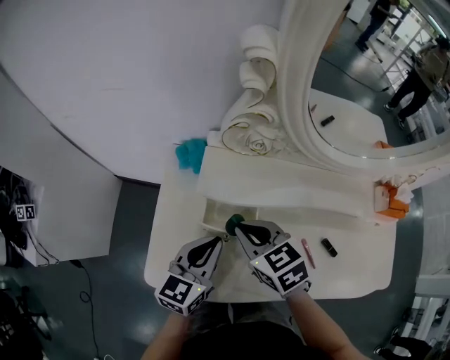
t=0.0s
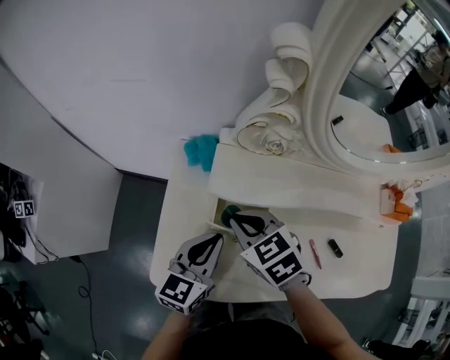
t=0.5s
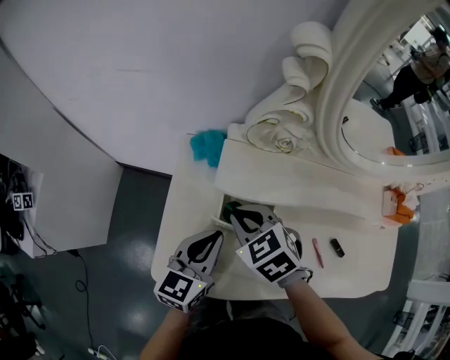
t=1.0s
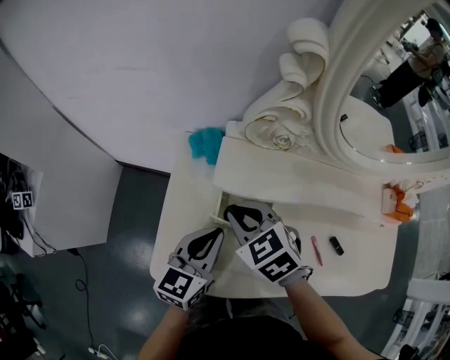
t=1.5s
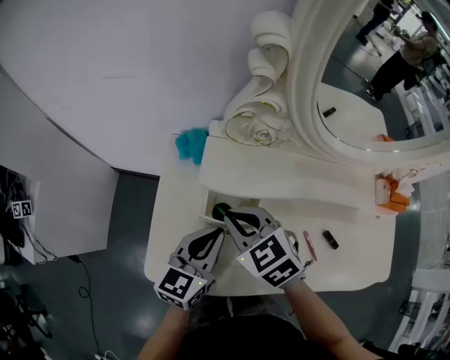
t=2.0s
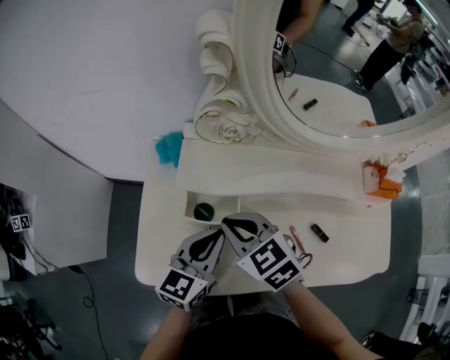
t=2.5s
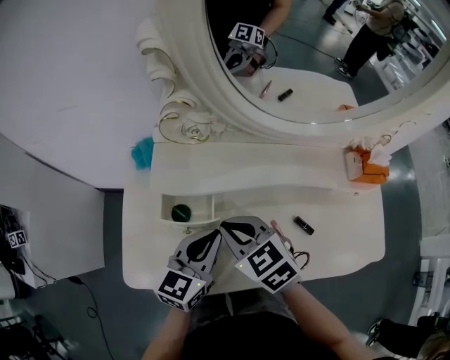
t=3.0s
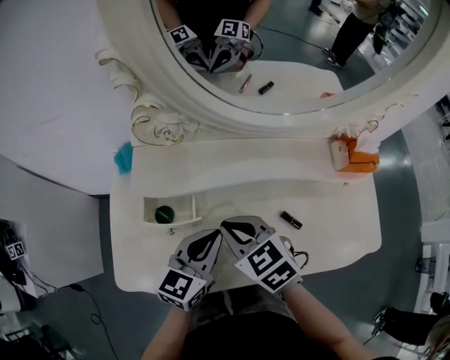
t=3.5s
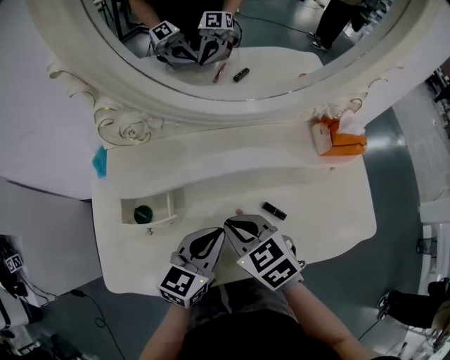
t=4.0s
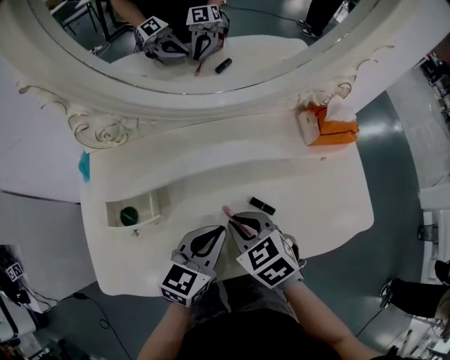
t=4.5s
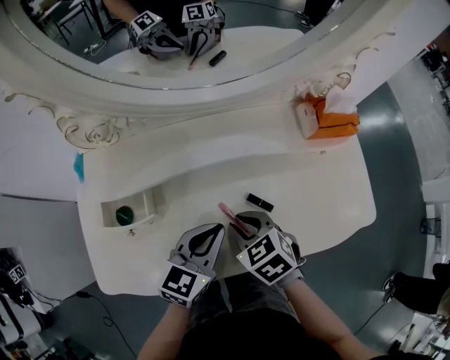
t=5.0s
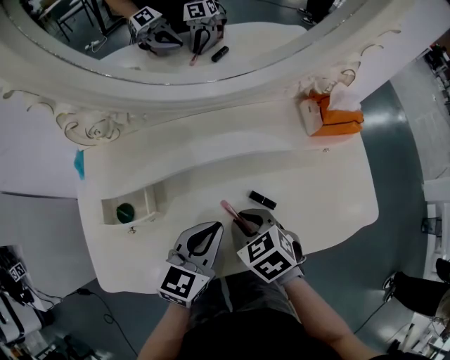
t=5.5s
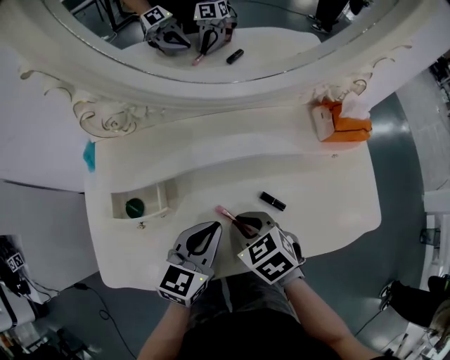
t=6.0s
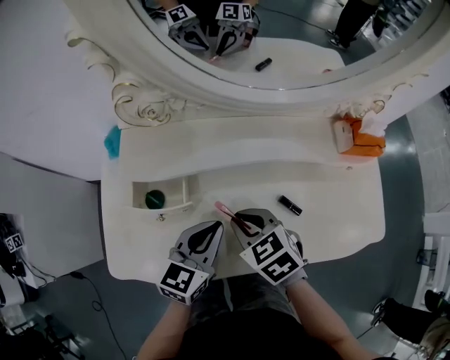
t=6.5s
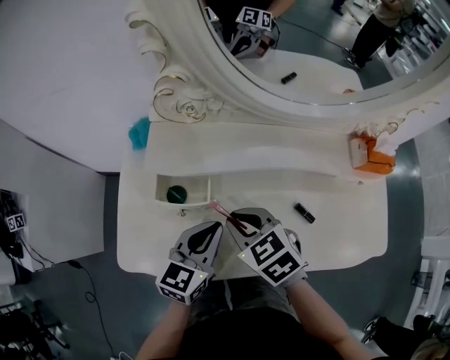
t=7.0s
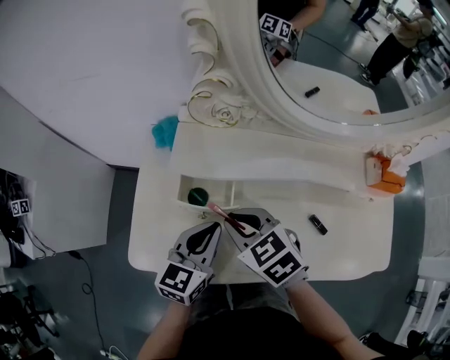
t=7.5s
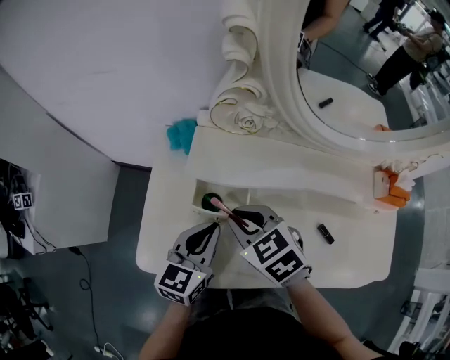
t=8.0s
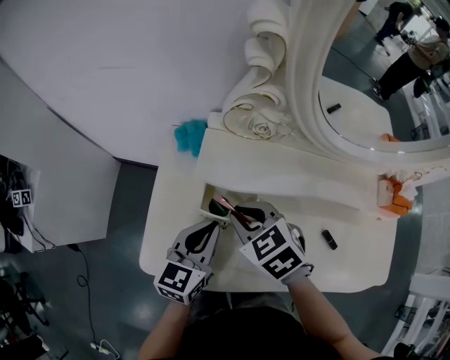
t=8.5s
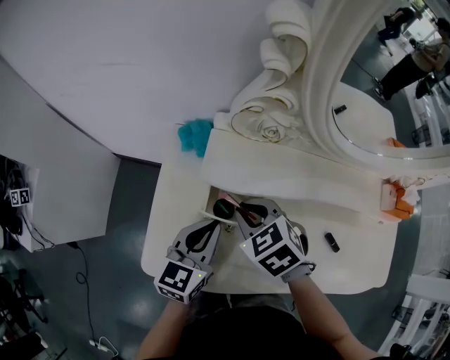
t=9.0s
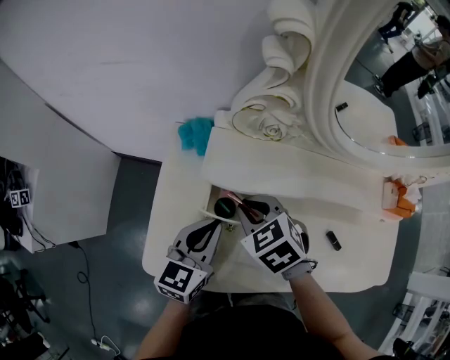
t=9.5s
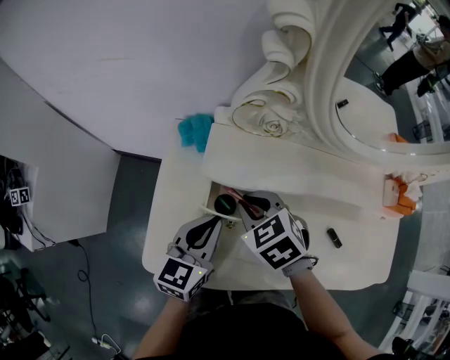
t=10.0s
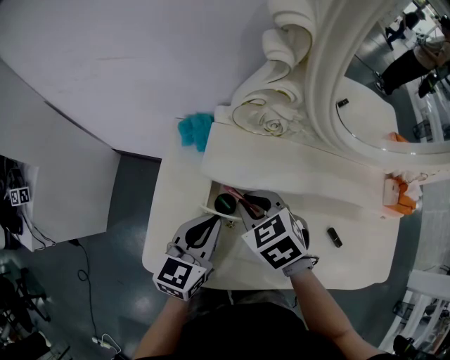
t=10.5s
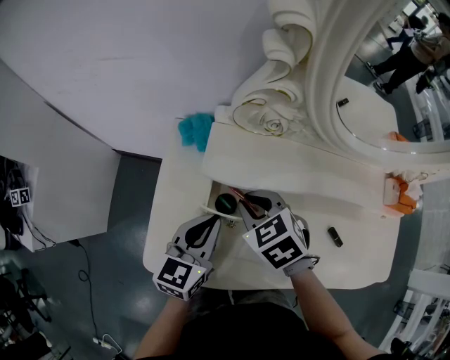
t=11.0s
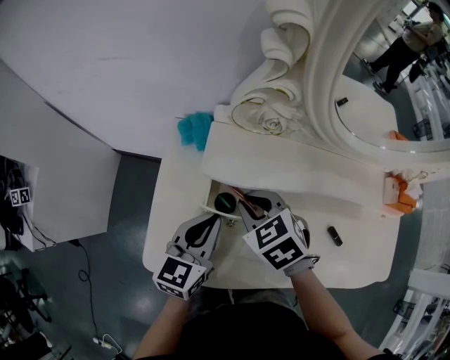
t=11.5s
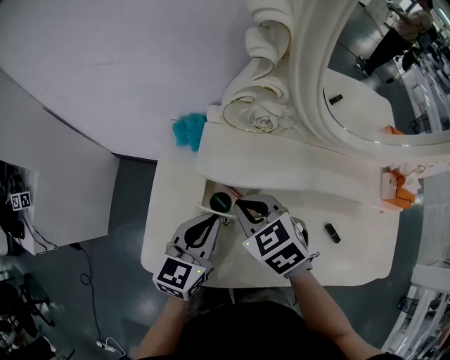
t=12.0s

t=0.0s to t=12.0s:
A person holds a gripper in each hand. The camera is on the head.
t=2.0s to t=4.0s: Both grippers move to the right, some 20 cm.
t=4.0s to t=6.0s: The right gripper heads downward, covering approximately 5 cm.
t=6.0s to t=8.0s: The grippers both shift to the left by about 20 cm. The right gripper turns by roughly 20 degrees. Meanwhile the left gripper rotates roughly 20 degrees.
t=8.0s to t=10.0s: The right gripper ends up some 5 cm from where it was.
t=10.0s to t=12.0s: There are only small adjustments of the grippers.

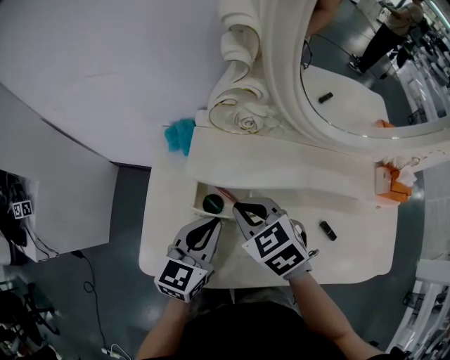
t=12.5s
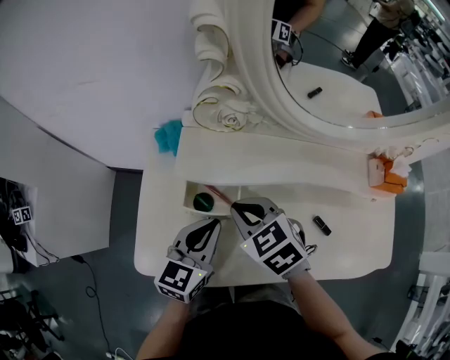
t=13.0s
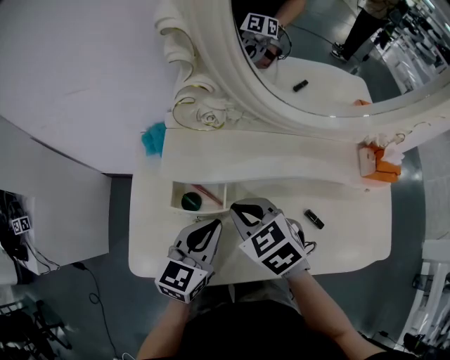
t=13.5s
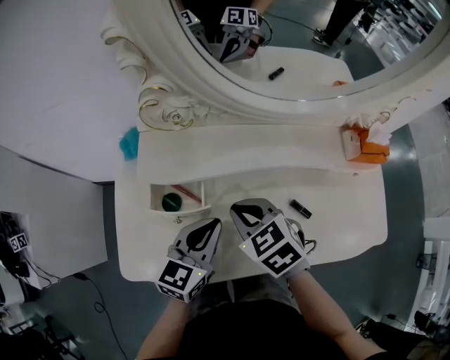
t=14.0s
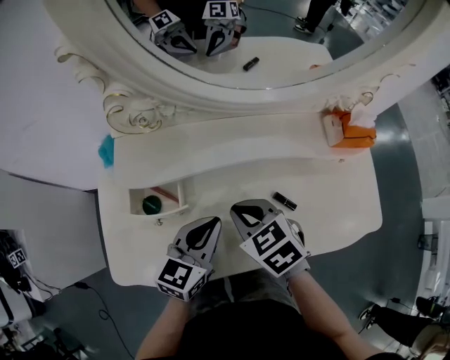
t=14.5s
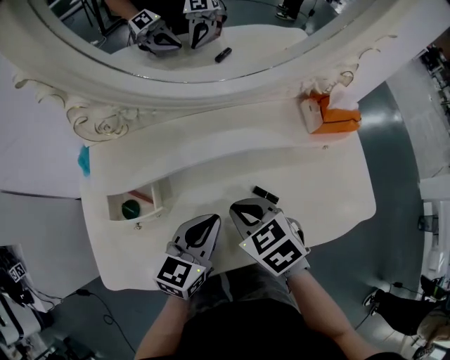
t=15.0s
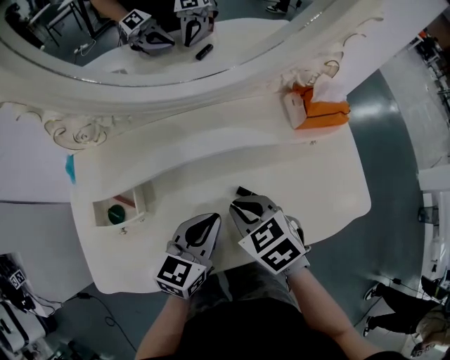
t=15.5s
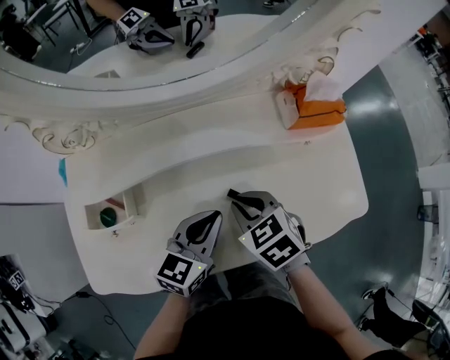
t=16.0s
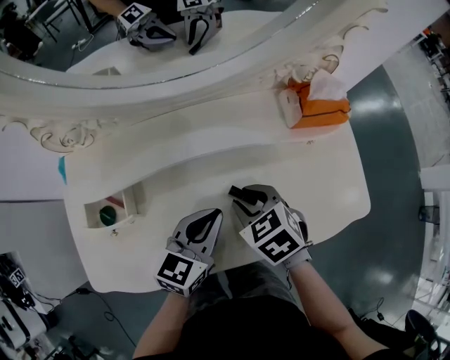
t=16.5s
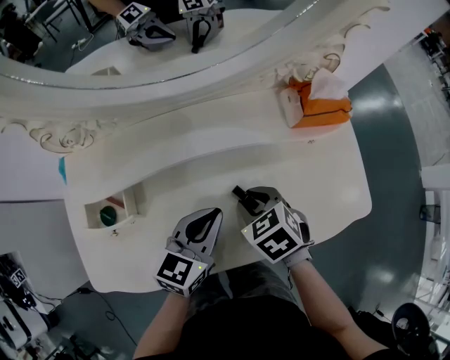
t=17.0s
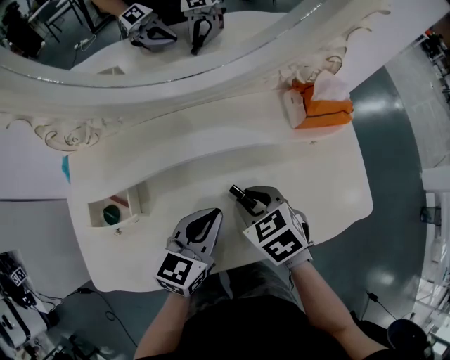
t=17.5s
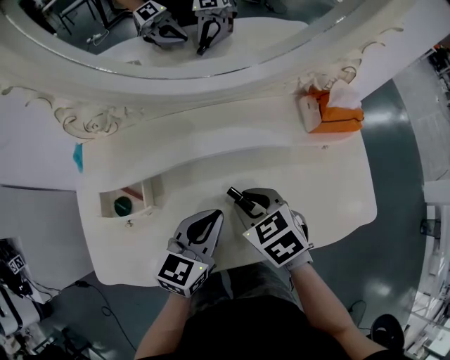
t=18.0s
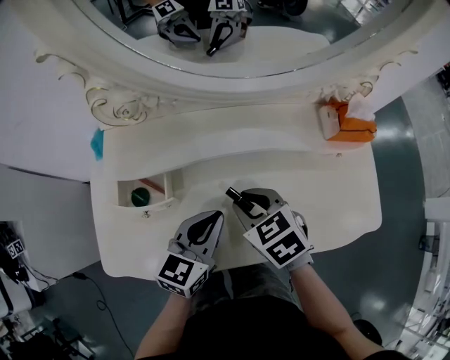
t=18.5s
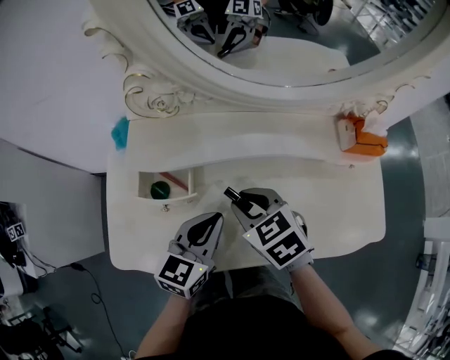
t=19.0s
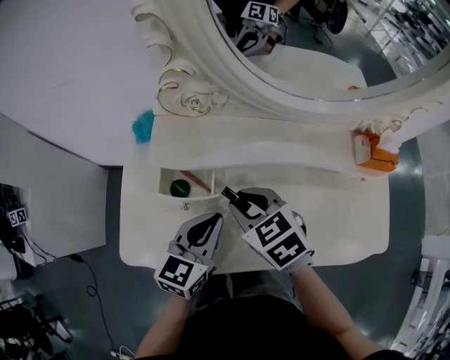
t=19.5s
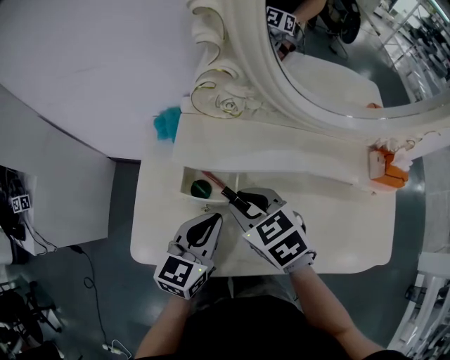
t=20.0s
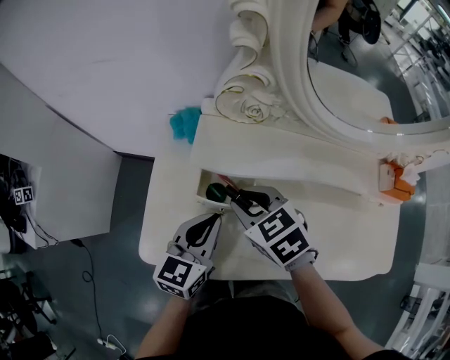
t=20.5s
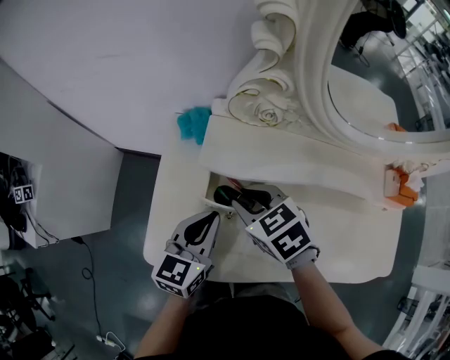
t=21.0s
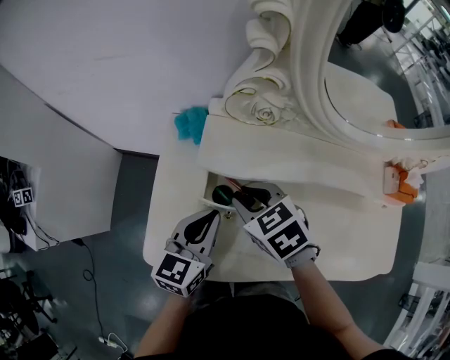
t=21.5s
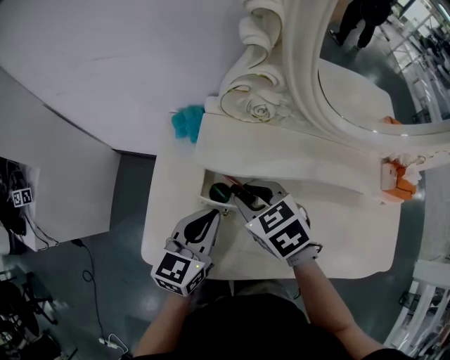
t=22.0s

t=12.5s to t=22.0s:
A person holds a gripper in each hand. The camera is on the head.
t=12.5s to t=14.5s: Both grippers travel together to the right, roughly 15 cm.
t=14.5s to t=16.5s: Both grippers move to the right, about 15 cm. The right gripper opens.
t=16.5s to t=18.0s: The grippers make only small movements.
t=18.0s to t=20.0s: The grippers both shift to the left by roughly 20 cm.
t=20.0s to t=22.0s: The left gripper is displaced to the left by about 5 cm. Meanwhile the right gripper shifts by some 5 cm.

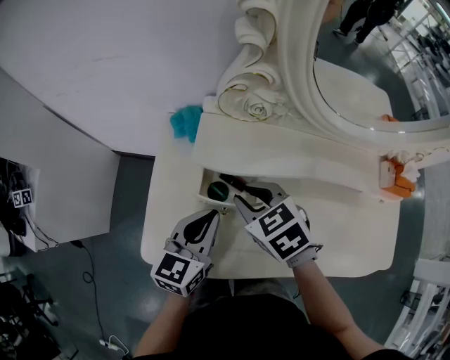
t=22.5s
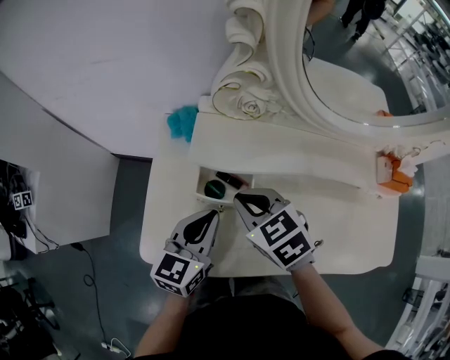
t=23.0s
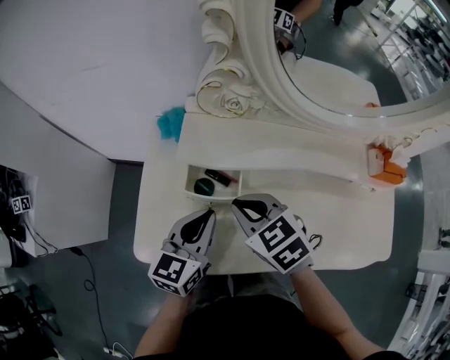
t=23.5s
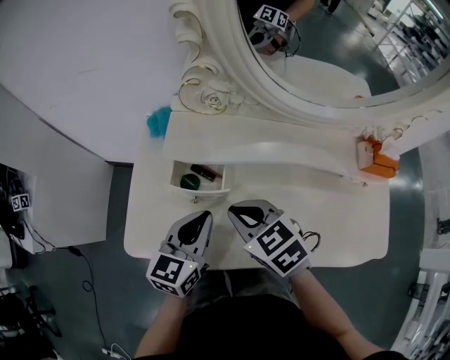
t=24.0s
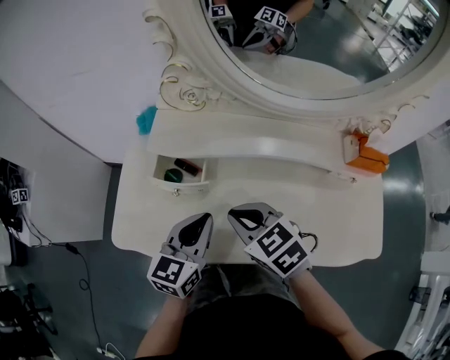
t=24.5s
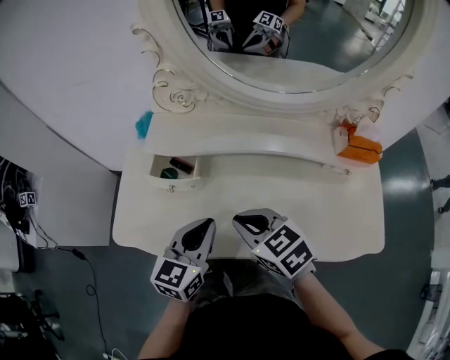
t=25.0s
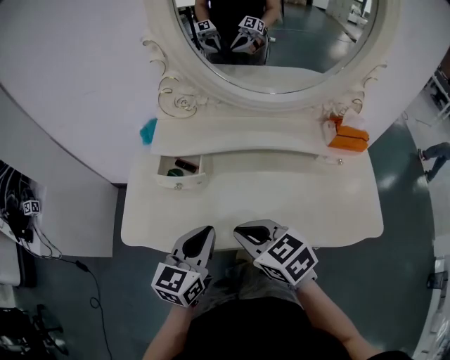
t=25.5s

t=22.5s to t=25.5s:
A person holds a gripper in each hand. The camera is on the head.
t=22.5s to t=24.0s: The right gripper heads backward, covering about 10 cm. Meanwhile the left gripper is displaced to the right by about 5 cm.
t=24.0s to t=25.5s: Both grippers move backward, some 10 cm.

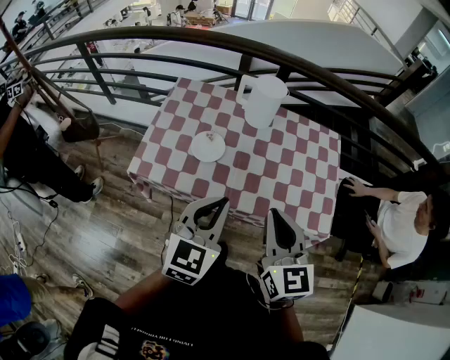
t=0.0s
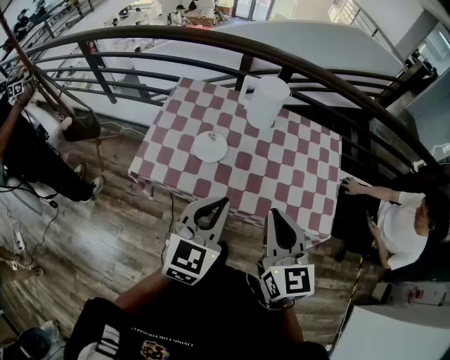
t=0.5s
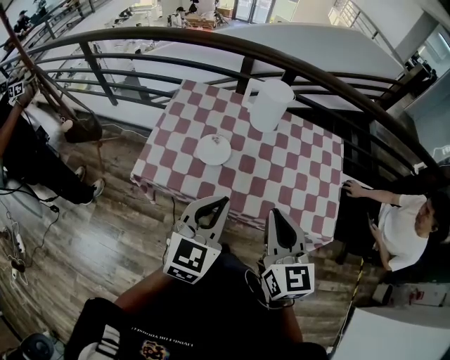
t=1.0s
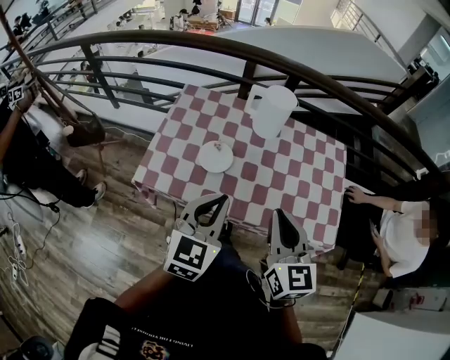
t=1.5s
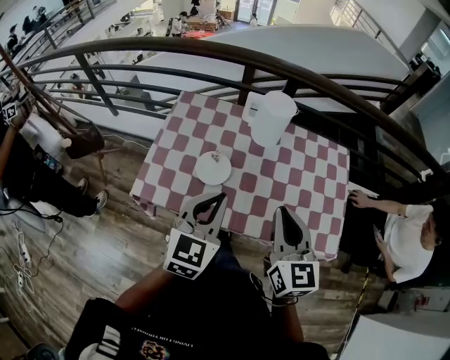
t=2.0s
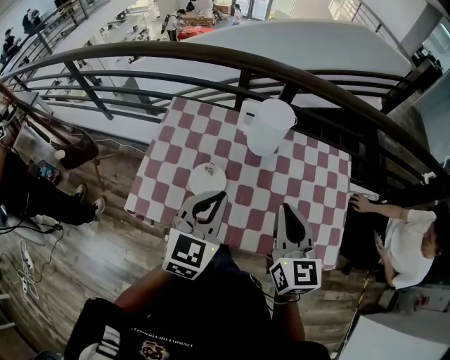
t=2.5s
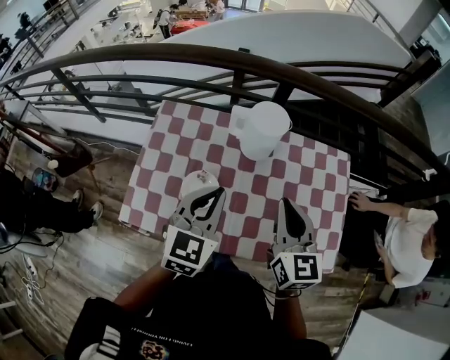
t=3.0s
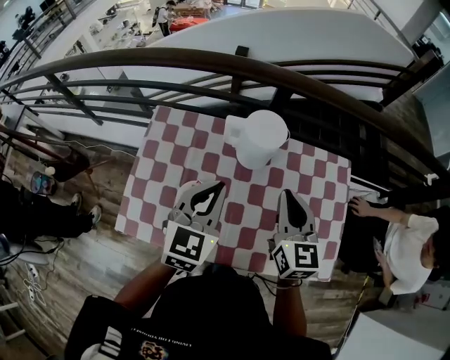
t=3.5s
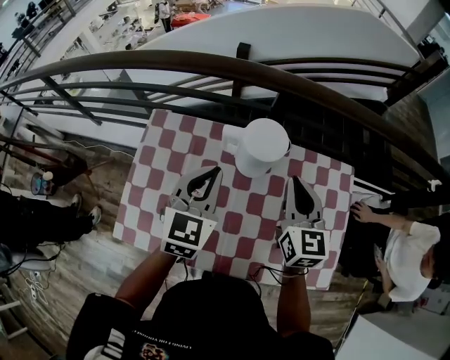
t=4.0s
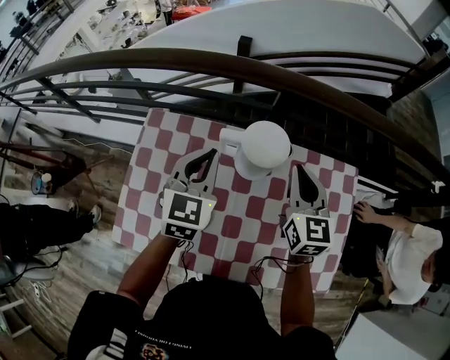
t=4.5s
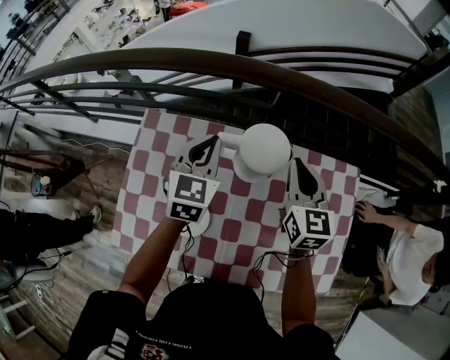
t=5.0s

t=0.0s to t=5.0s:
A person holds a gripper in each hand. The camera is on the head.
t=0.0s to t=2.5s: Both grippers travel together forward, some 20 cm.
t=2.5s to t=5.0s: Both grippers move forward, roughly 30 cm.
